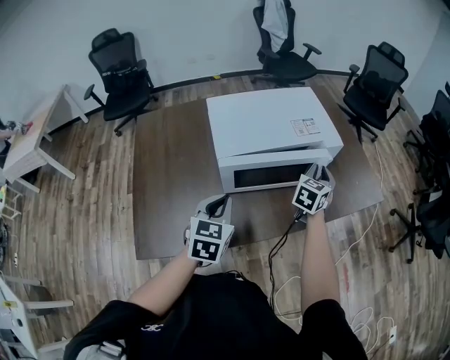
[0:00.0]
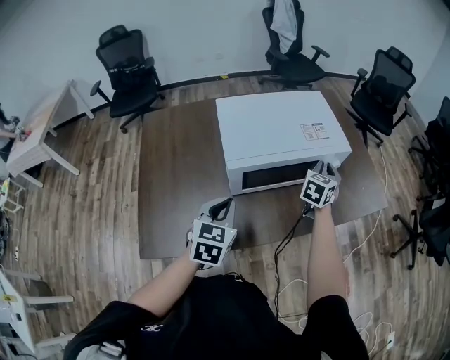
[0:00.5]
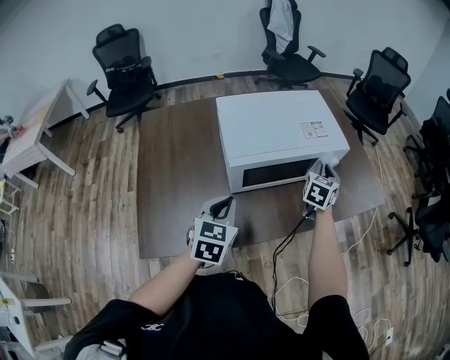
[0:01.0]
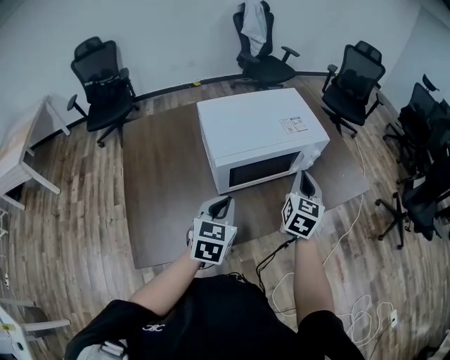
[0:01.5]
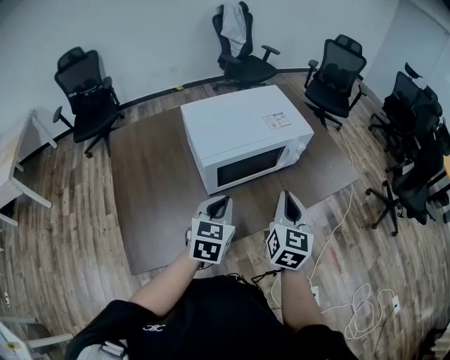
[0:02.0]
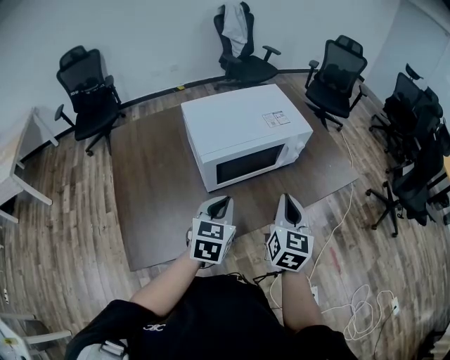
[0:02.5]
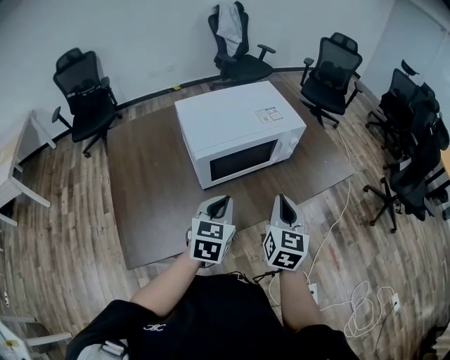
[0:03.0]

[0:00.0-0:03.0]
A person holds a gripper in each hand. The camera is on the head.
0:00.0 to 0:01.5: The right gripper moves backward and upward, approximately 15 cm.
0:01.5 to 0:03.0: The right gripper travels backward by some 10 cm, while the left gripper shifts roughly 5 cm to the right.

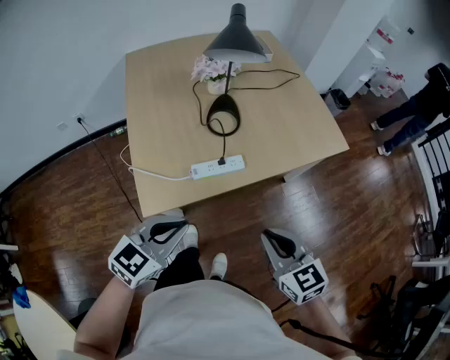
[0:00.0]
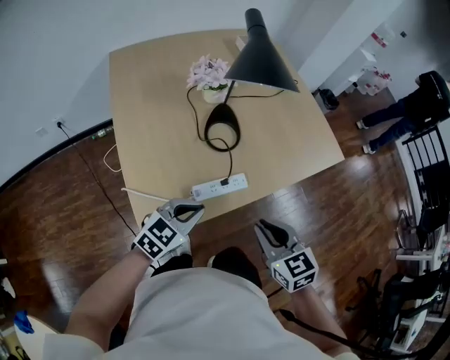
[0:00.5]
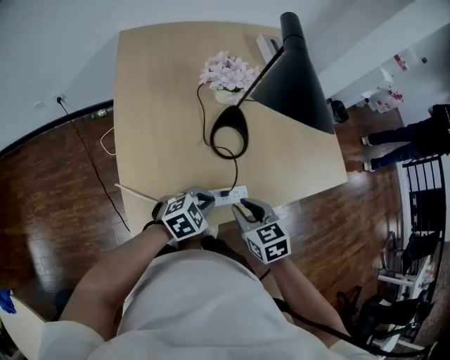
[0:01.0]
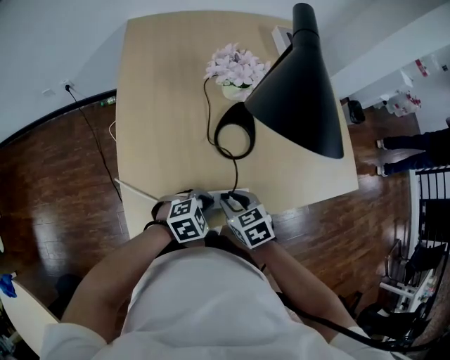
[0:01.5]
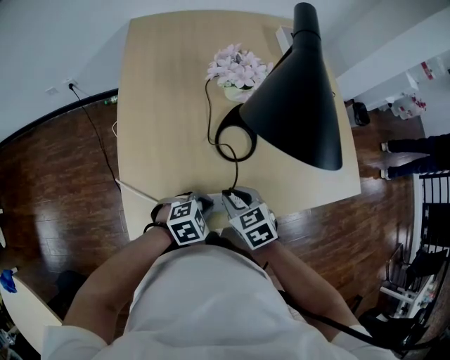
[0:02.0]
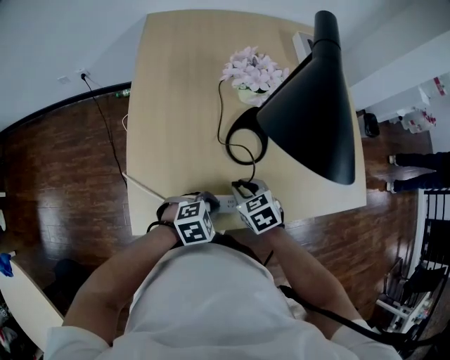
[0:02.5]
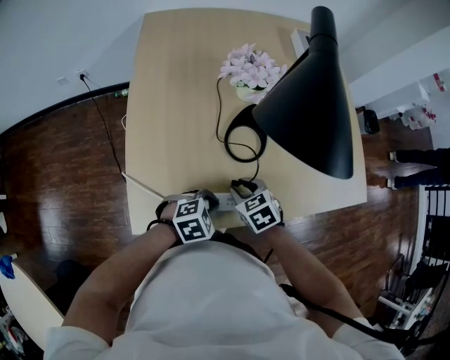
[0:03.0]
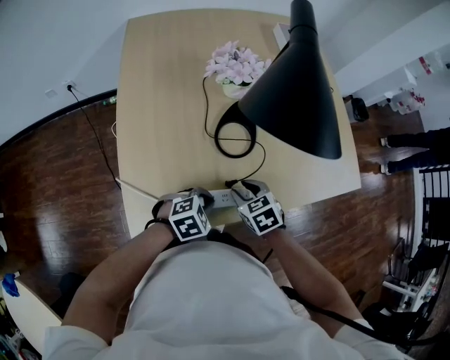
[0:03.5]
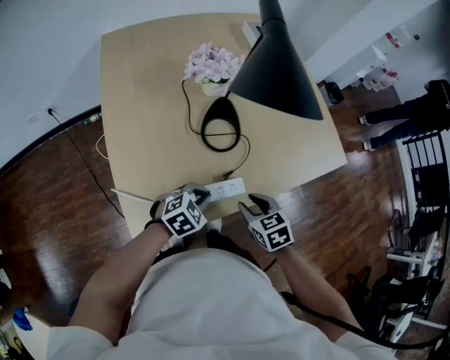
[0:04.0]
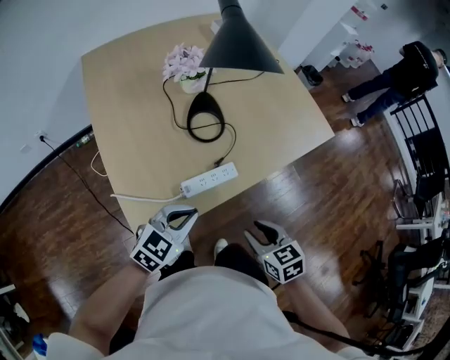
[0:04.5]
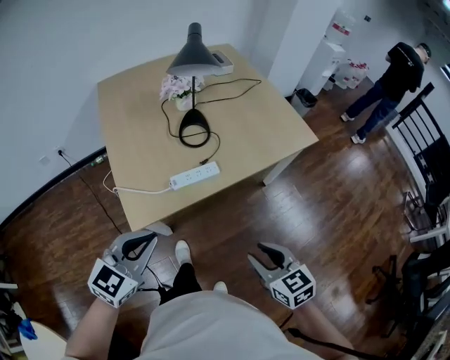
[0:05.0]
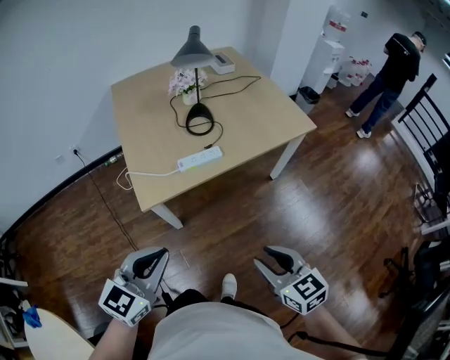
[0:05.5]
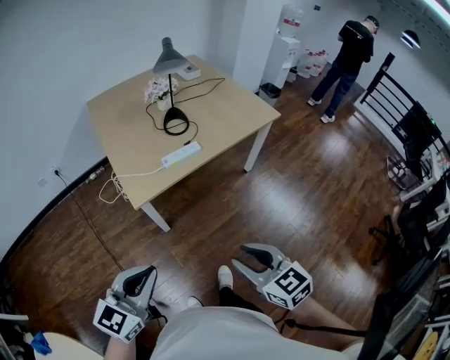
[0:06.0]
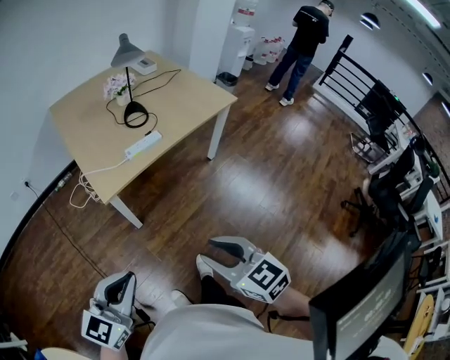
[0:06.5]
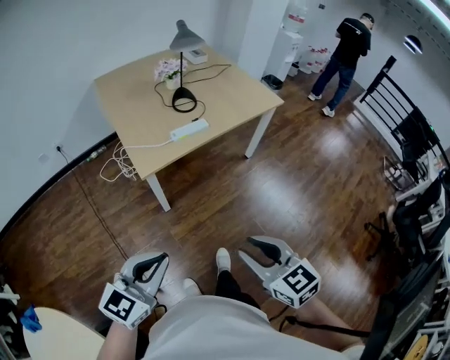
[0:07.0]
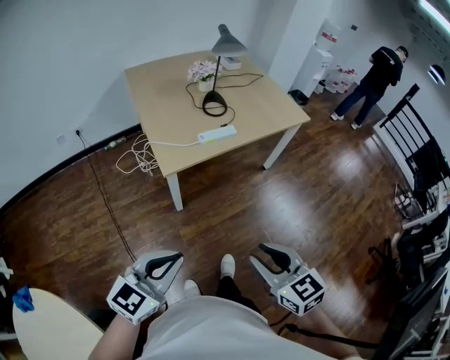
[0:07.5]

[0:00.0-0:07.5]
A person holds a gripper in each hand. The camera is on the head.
0:00.0 to 0:02.0: The left gripper is displaced downward and forward by approximately 30 cm, and tilts its fingers roughly 30 degrees downward. Meanwhile the right gripper travels forward, downward and to the left by roughly 35 cm, and changes its angle by approximately 30 degrees.
0:02.0 to 0:04.0: The right gripper heads to the right, covering some 10 cm.
0:04.0 to 0:05.5: The two grippers go about 40 cm backward and upward. The right gripper swivels about 30 degrees. Meanwhile the left gripper swivels about 40 degrees.
0:05.5 to 0:07.5: The left gripper goes roughly 20 cm backward. The right gripper is displaced backward and to the left by about 20 cm.

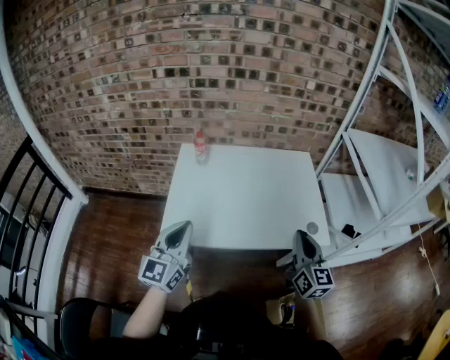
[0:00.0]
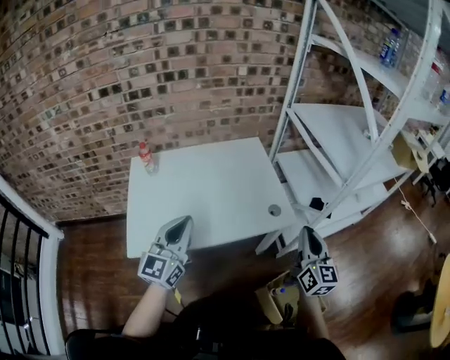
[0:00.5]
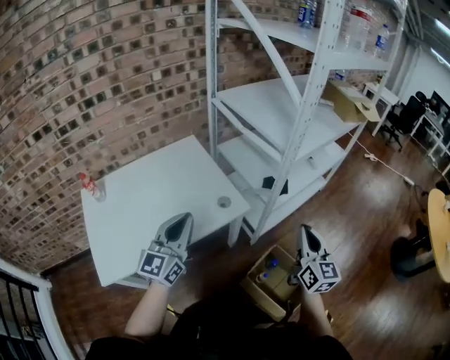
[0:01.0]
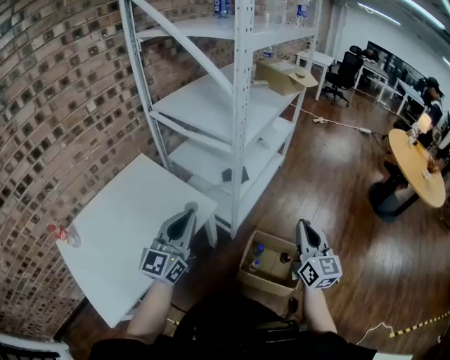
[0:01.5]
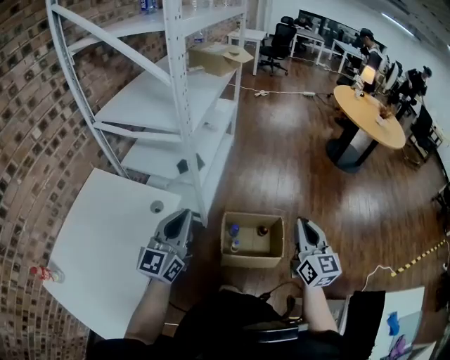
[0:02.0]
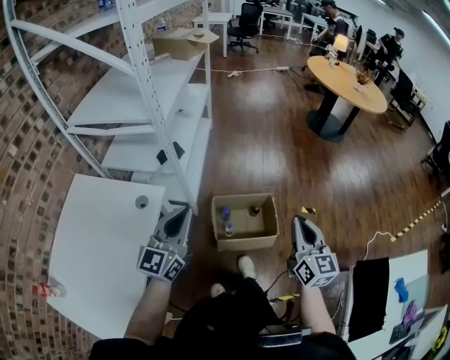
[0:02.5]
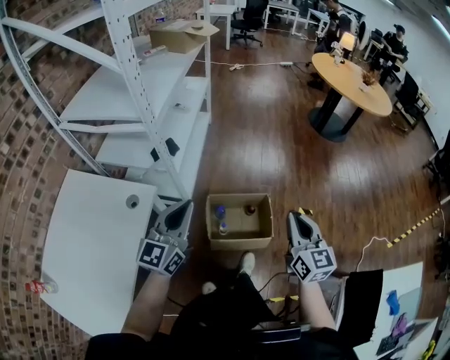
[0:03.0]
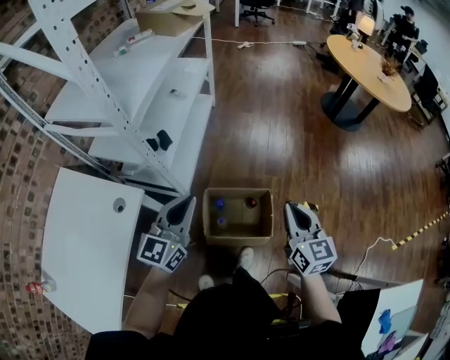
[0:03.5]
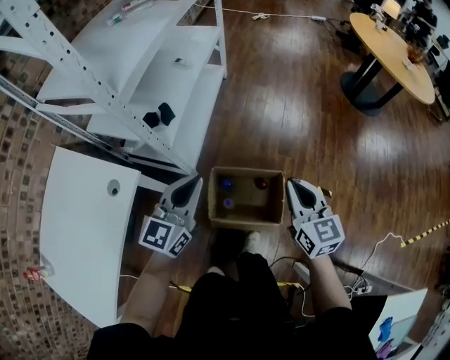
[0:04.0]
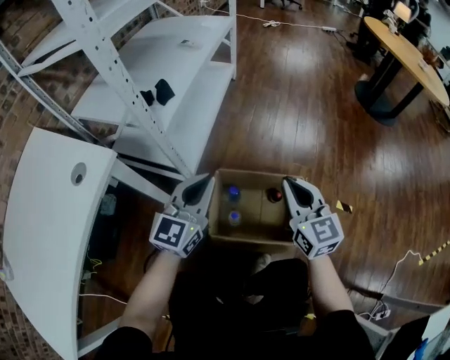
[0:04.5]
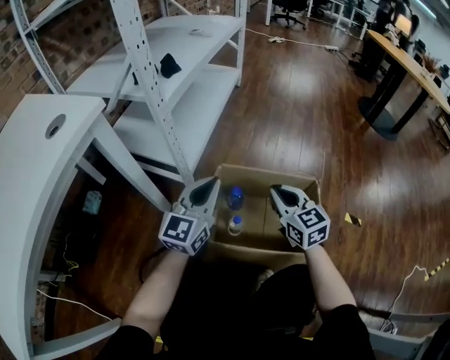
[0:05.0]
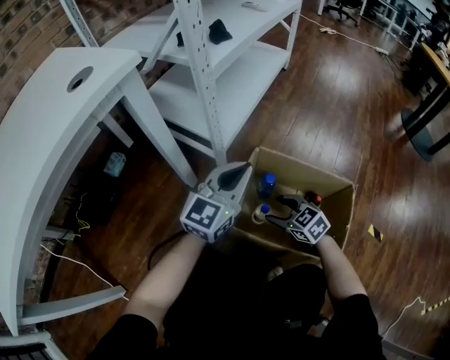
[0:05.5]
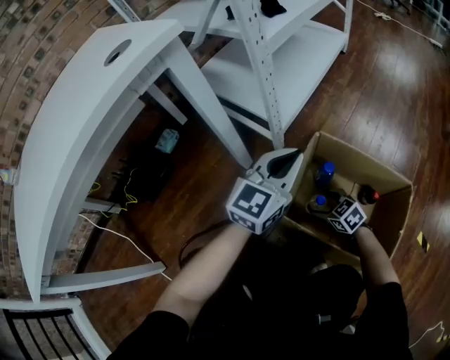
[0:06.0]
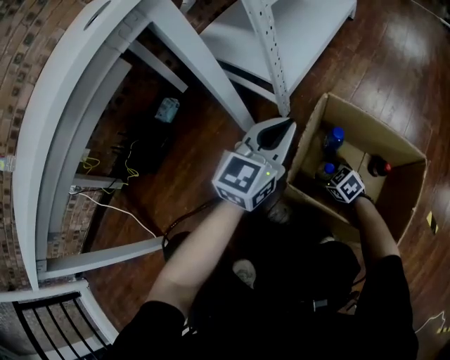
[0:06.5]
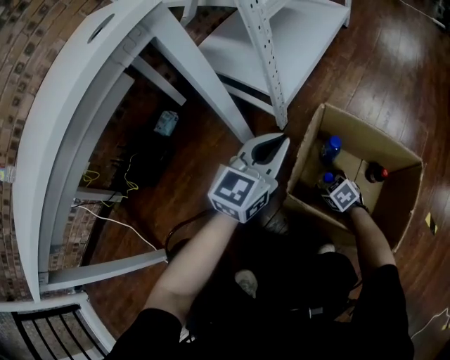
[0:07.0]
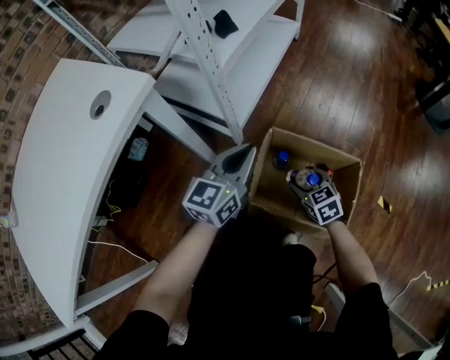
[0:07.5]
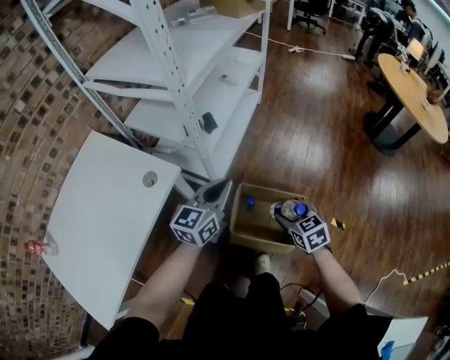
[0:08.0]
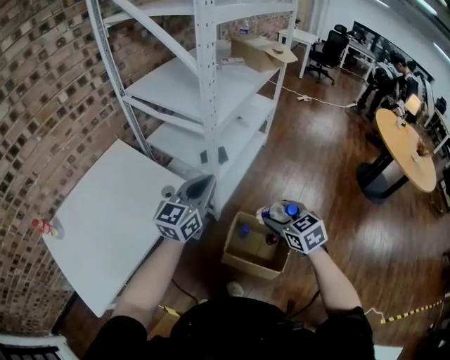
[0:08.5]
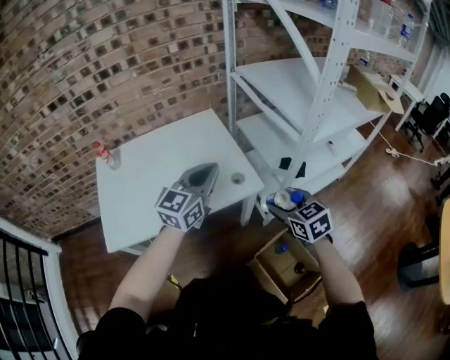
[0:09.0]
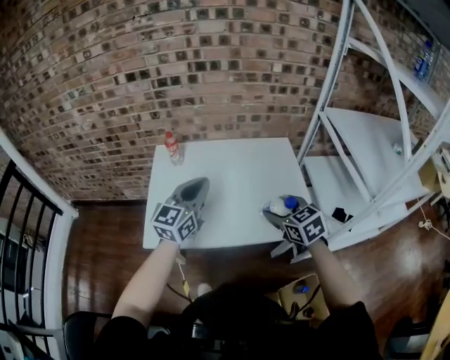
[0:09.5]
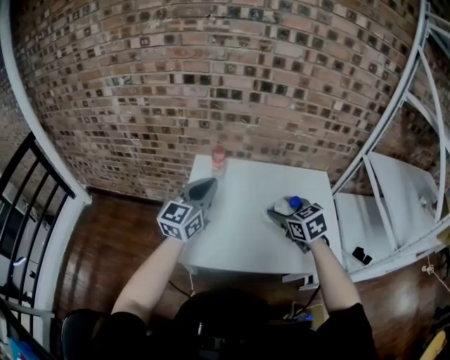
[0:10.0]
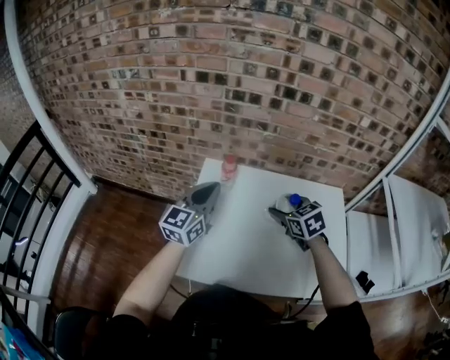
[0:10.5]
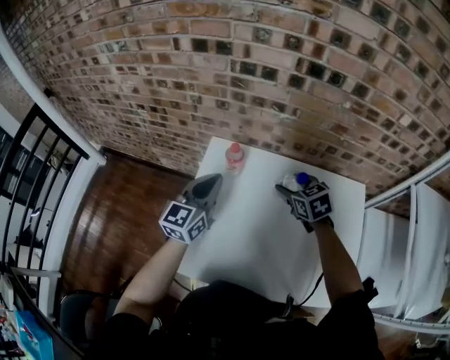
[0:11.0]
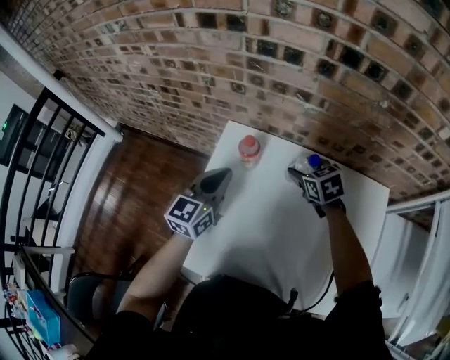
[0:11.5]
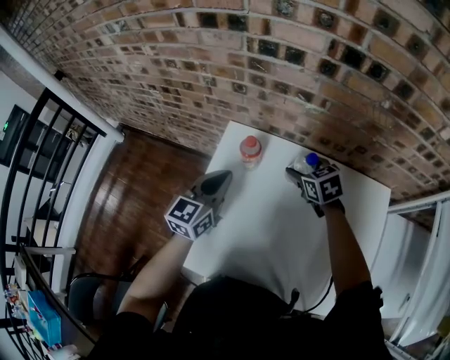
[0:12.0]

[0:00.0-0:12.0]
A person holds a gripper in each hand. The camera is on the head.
0:00.0 to 0:02.0: The right gripper shifts by about 50 cm, and changes its angle by roughly 70 degrees; the left gripper ends up some 50 cm from where it was, and swivels roughly 70 degrees.
0:02.0 to 0:04.0: The right gripper travels forward and downward by roughly 25 cm. Meanwhile the left gripper shifts approximately 30 cm forward, to the right and downward.
0:04.0 to 0:06.0: The left gripper moves downward, approximately 50 cm. Meanwhile the right gripper moves downward, some 70 cm, points its fingers approximately 30 degrees further downward, and opens.
0:06.0 to 0:08.0: Both grippers travel together upward, some 50 cm. The right gripper rotates about 30 degrees.
0:08.0 to 0:10.0: The pair of grippers is taken some 70 cm. The right gripper changes its angle by roughly 70 degrees; the left gripper rotates about 70 degrees.
0:10.0 to 0:12.0: The grippers both shift forward and downward by roughly 30 cm. The left gripper swivels roughly 20 degrees.

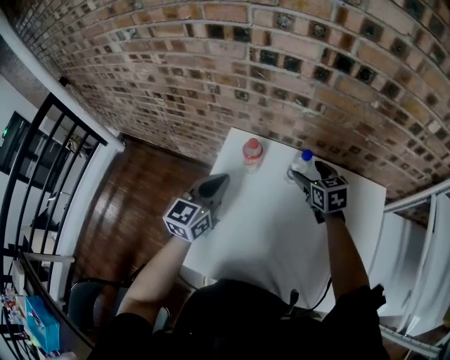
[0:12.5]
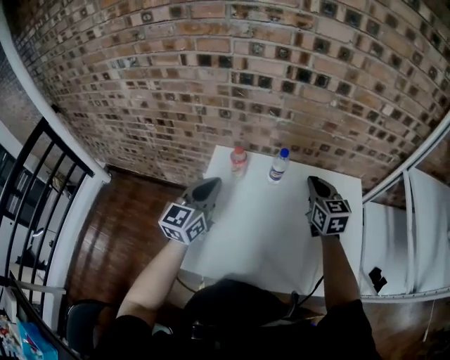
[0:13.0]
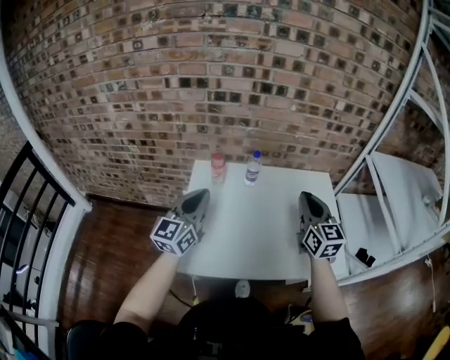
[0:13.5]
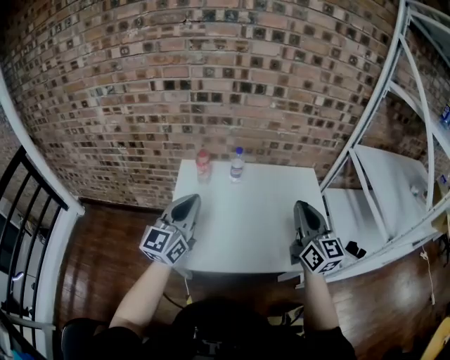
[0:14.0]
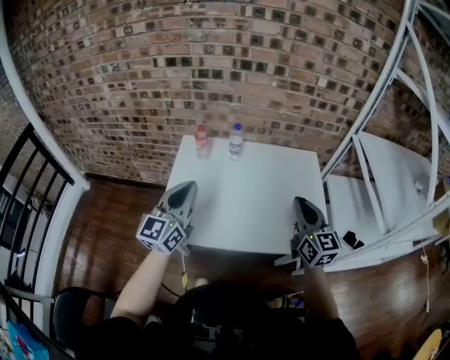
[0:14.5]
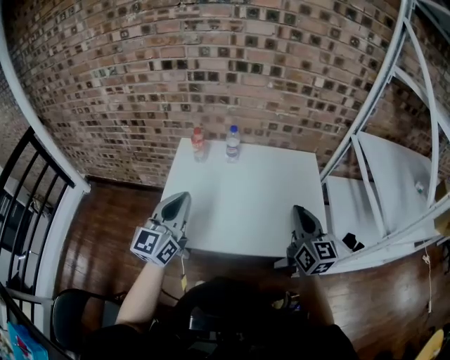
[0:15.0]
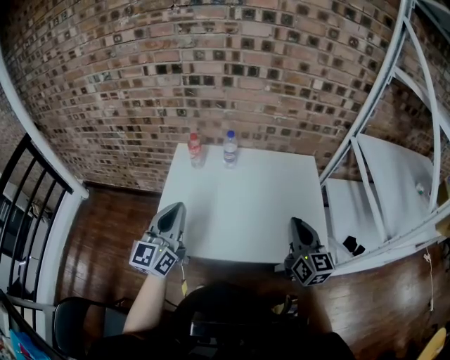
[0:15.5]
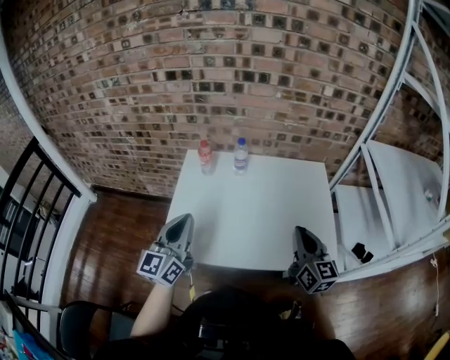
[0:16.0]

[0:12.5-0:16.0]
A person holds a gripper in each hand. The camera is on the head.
0:12.5 to 0:14.5: The right gripper goes some 50 cm backward, upward and to the right, angles its fingers upward, by approximately 30 degrees, and closes. Meanwhile the left gripper moves backward and upward, roughly 30 cm.
0:14.5 to 0:16.0: The right gripper is displaced downward by some 5 cm.
